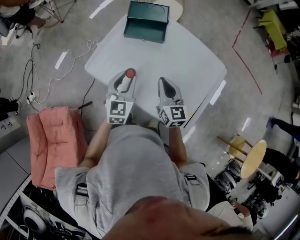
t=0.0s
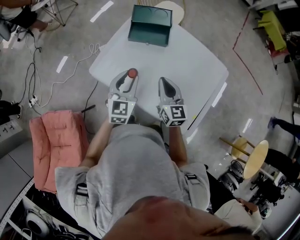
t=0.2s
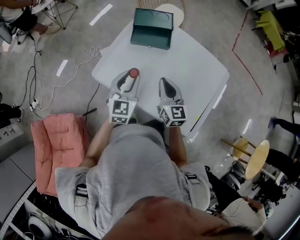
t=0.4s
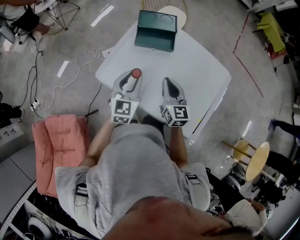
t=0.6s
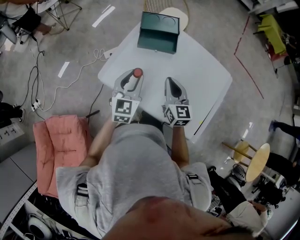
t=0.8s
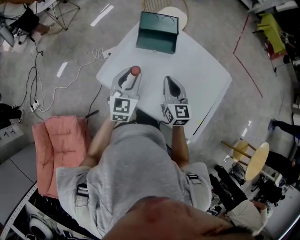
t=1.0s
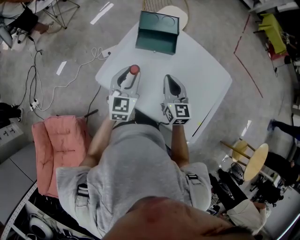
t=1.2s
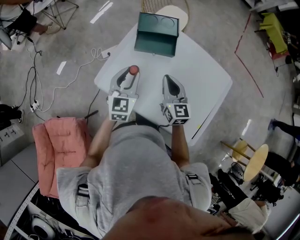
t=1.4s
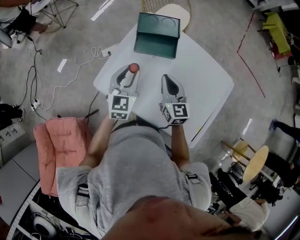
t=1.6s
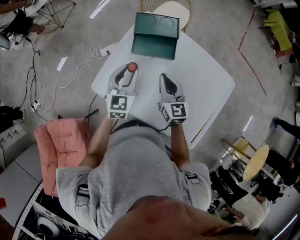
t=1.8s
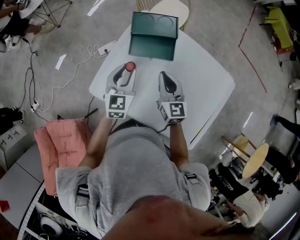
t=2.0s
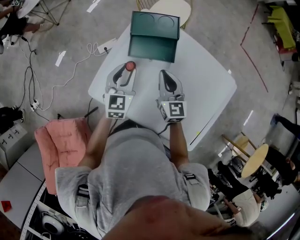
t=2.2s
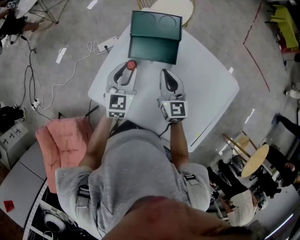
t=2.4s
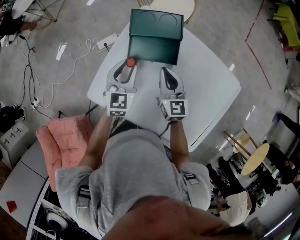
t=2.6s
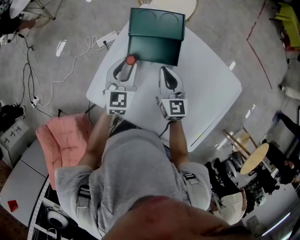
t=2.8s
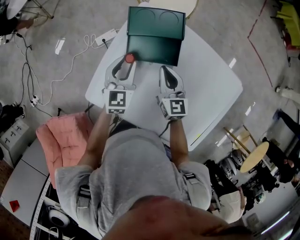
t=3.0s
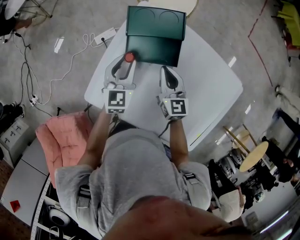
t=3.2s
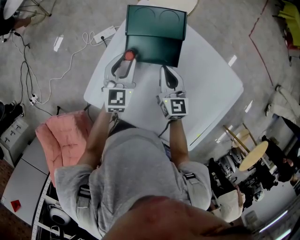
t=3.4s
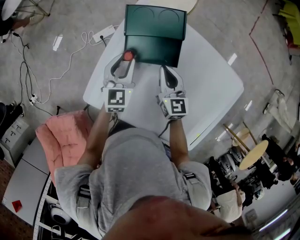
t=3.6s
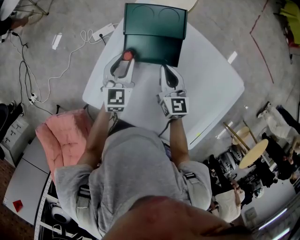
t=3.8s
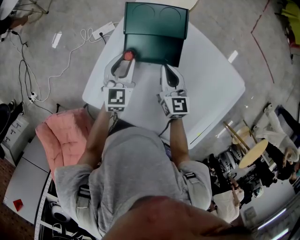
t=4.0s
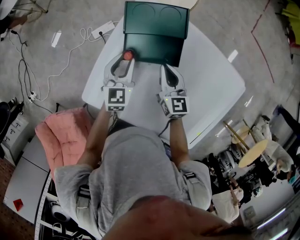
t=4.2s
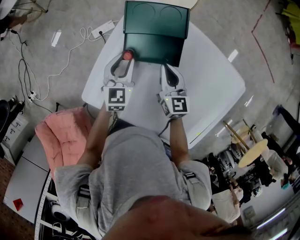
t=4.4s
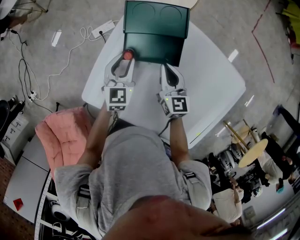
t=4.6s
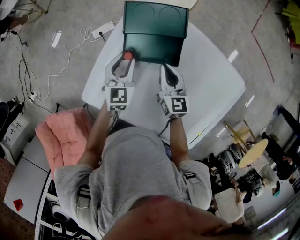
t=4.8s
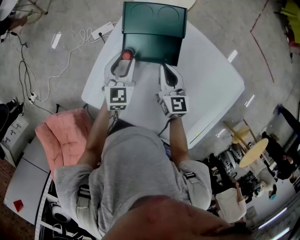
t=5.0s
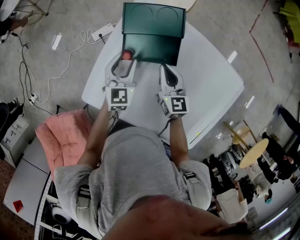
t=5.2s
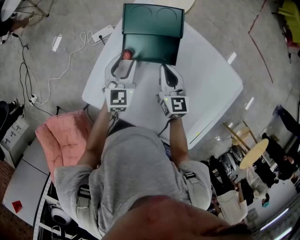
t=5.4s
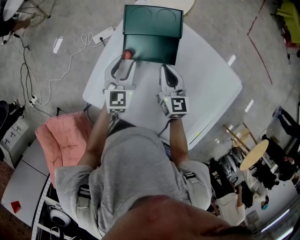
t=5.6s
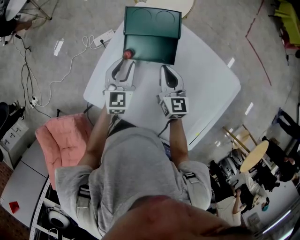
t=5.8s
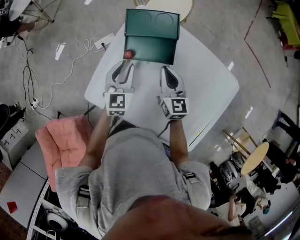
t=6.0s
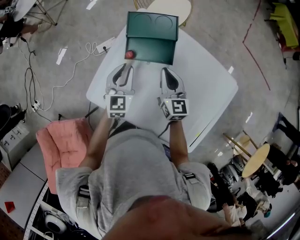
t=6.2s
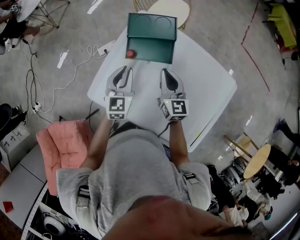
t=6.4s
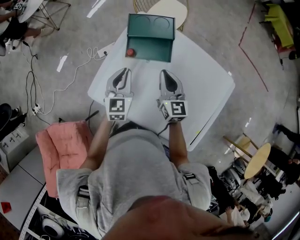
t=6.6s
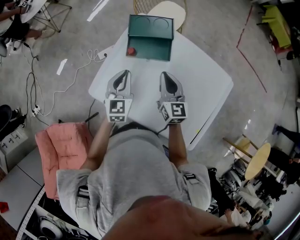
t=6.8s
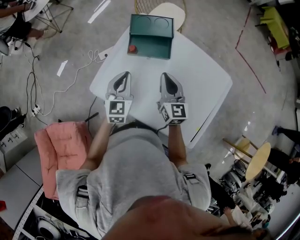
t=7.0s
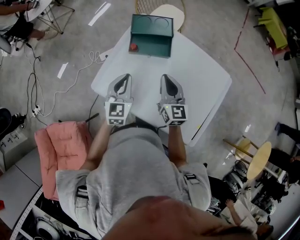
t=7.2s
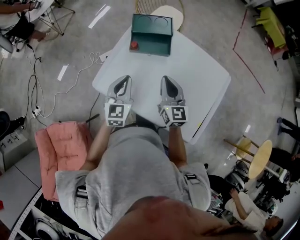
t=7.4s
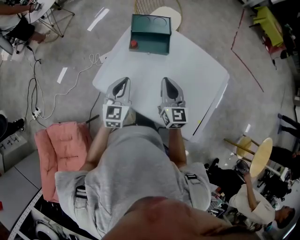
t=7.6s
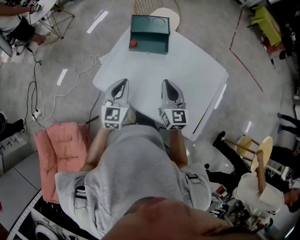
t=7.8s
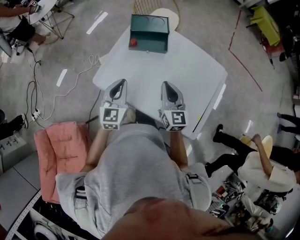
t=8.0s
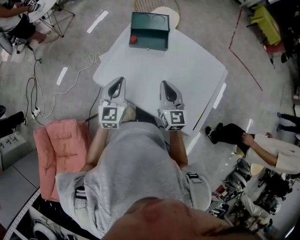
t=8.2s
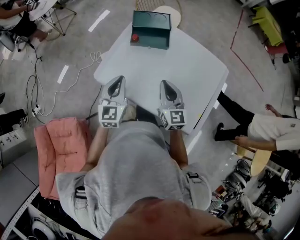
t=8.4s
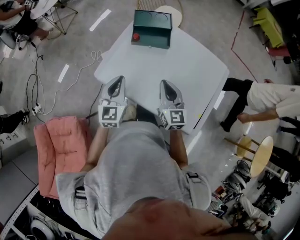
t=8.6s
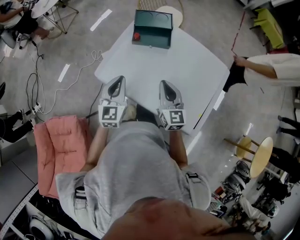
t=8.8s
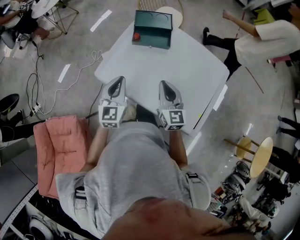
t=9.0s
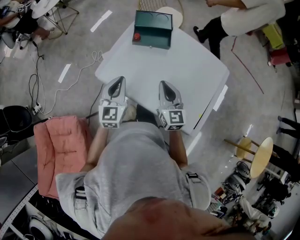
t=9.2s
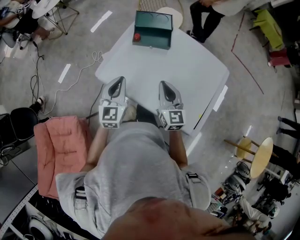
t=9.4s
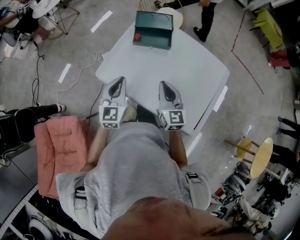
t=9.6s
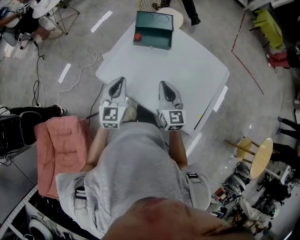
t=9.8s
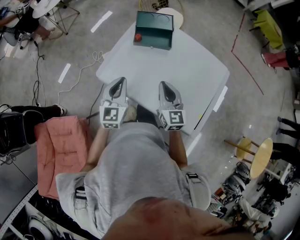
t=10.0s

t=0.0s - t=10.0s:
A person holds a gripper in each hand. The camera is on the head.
t=0.0s - t=1.4s: Both grippers move forward and to the left, about 10 cm.
t=1.4s - t=2.8s: The two grippers go roughly 20 cm forward and downward.
t=2.8s - t=4.2s: Both grippers travel together downward, roughly 5 cm.
t=4.2s - t=5.8s: The left gripper ends up roughly 5 cm from where it was.
t=5.8s - t=7.2s: Both grippers travel together backward and upward, some 20 cm. The left gripper closes its fingers.
t=7.2s - t=8.6s: The grippers both shift backward by some 10 cm.
t=8.6s - t=10.0s: The grippers stay close to where they were, moving slightly.

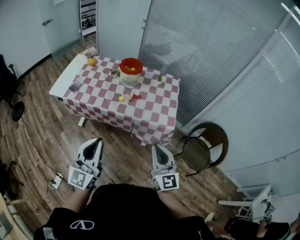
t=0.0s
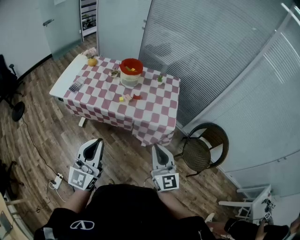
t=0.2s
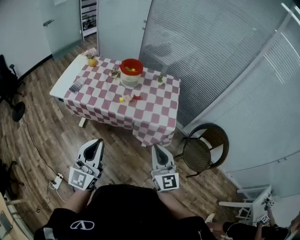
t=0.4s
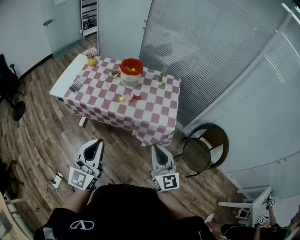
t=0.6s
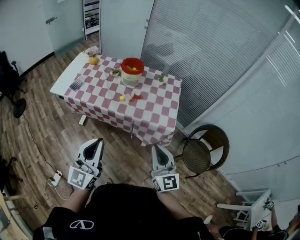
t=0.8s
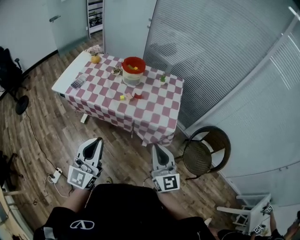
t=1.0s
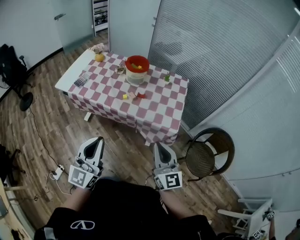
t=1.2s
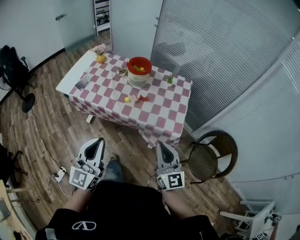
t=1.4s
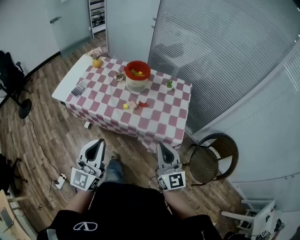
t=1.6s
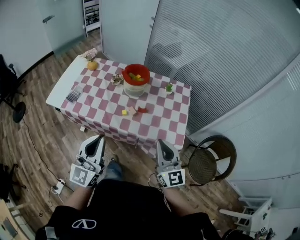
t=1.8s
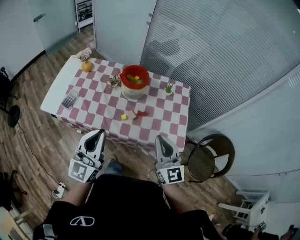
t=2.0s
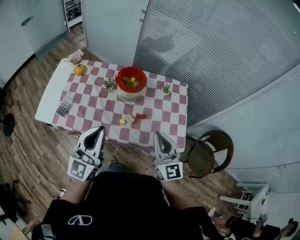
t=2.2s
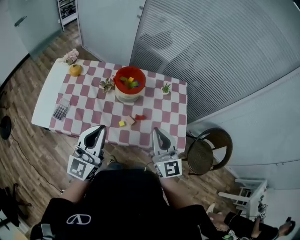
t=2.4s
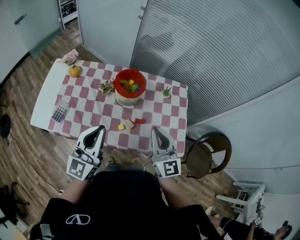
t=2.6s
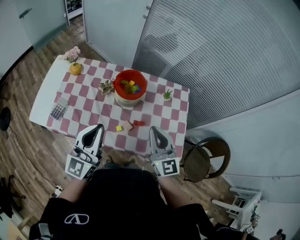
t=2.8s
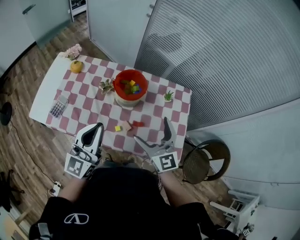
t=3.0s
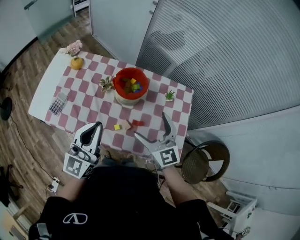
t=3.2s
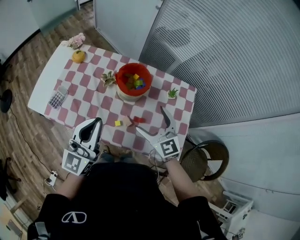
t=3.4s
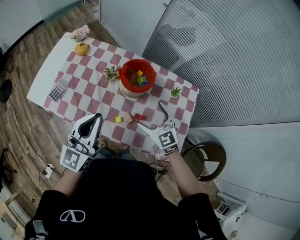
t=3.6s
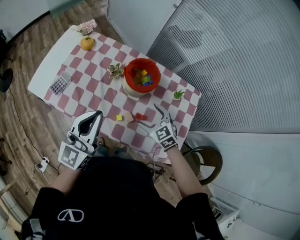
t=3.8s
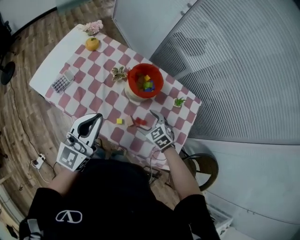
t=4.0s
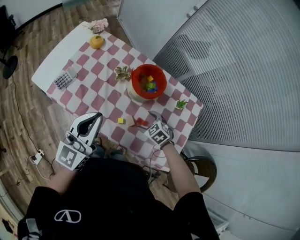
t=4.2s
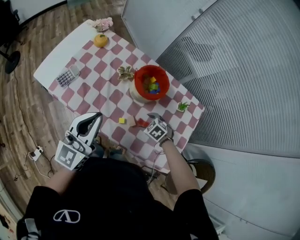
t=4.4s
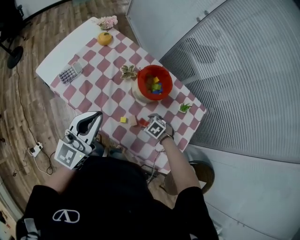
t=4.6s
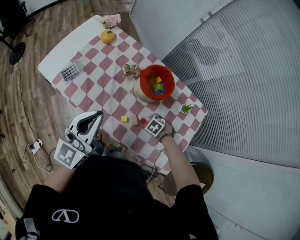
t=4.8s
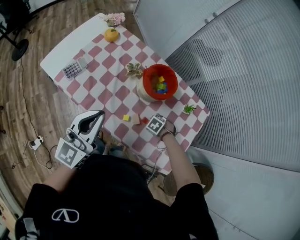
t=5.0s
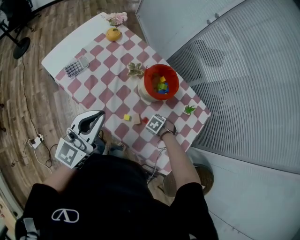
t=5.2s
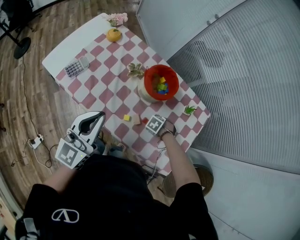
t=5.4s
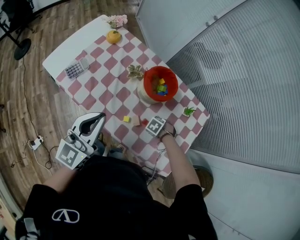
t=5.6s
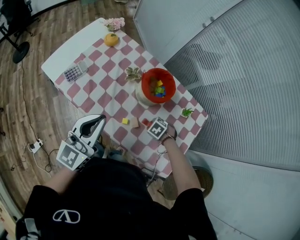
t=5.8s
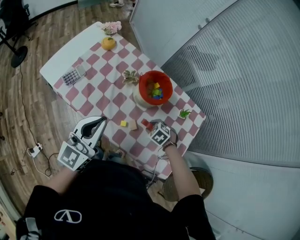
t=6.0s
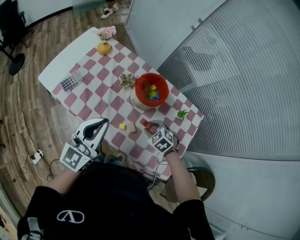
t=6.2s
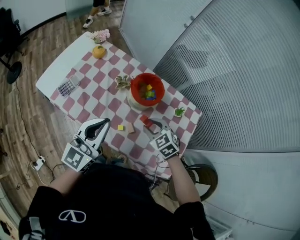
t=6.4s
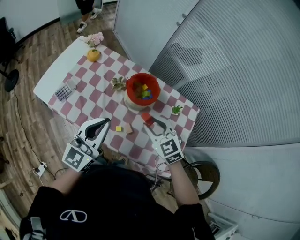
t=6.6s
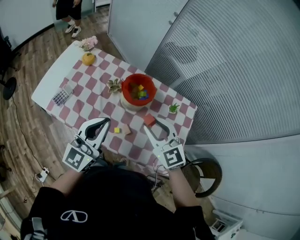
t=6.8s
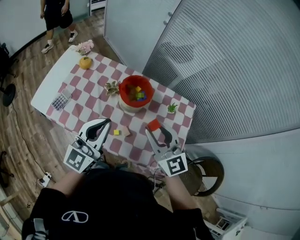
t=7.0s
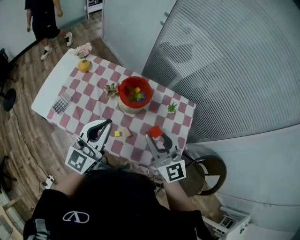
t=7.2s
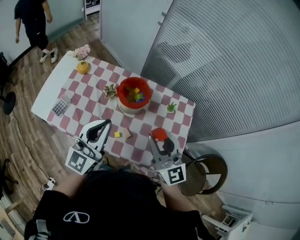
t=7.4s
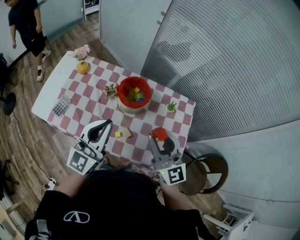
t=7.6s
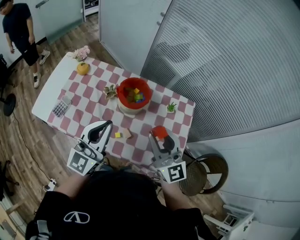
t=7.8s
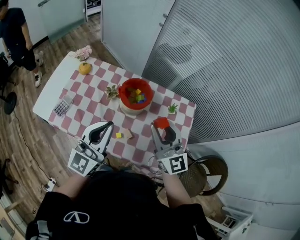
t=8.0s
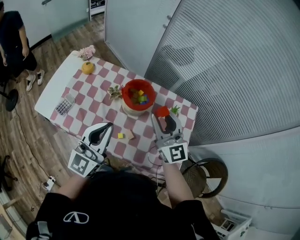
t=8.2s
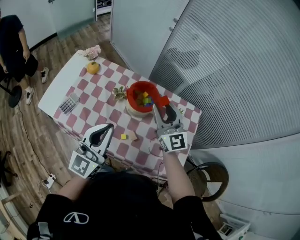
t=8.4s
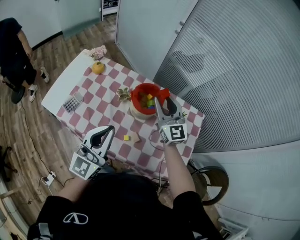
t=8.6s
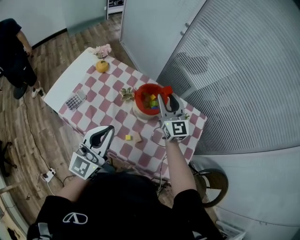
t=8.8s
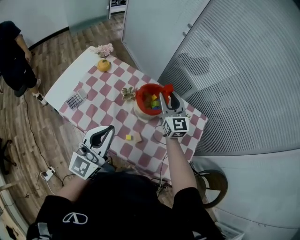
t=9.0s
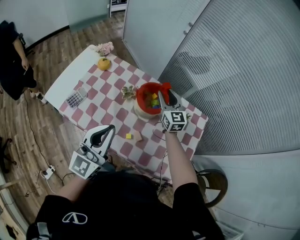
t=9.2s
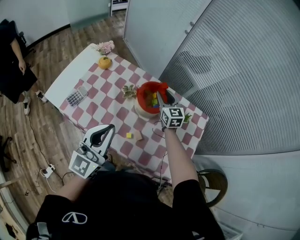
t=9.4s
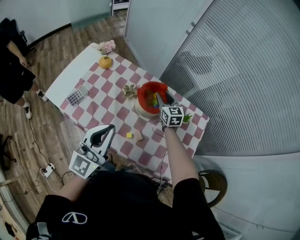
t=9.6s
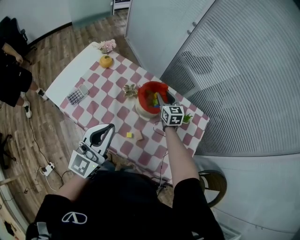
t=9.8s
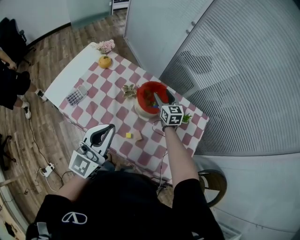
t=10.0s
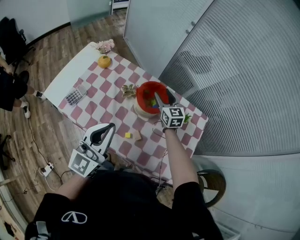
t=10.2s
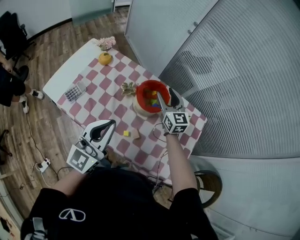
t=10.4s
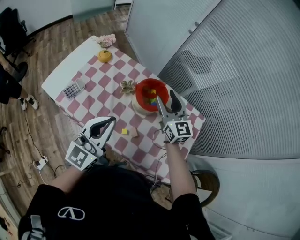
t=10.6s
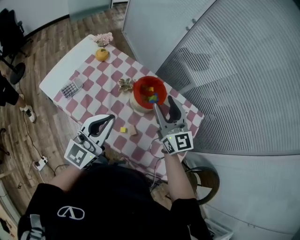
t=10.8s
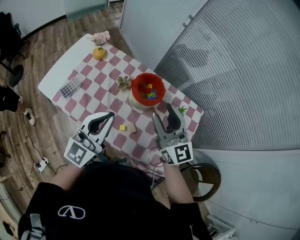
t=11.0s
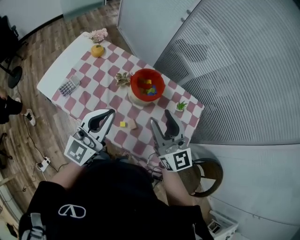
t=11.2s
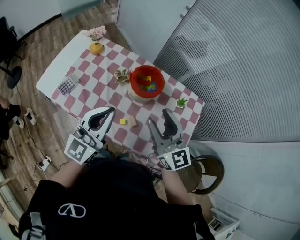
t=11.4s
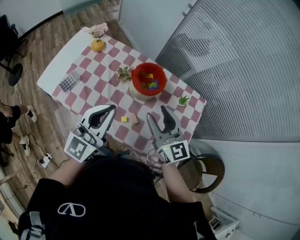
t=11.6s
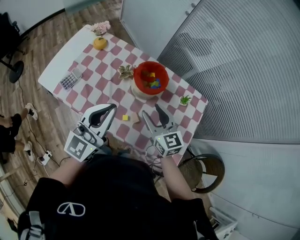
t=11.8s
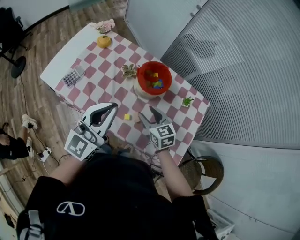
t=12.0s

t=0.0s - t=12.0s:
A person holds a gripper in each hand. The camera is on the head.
t=0.0s - t=1.6s: The grippers both shift forward by some 10 cm.
t=1.6s - t=3.0s: The grippers both shift forward by about 30 cm. The right gripper opens up.
t=3.0s - t=4.4s: The left gripper changes place by about 5 cm. The right gripper travels downward by some 30 cm, and tilts its fingers approximately 70 degrees downward.
t=4.4s - t=6.0s: The right gripper travels downward and back again, approximately 10 cm each way, and closes.
t=6.0s - t=7.6s: The right gripper goes roughly 35 cm upward, and angles its fingers upward, by some 80 degrees, while the left gripper shifts by about 10 cm.
t=7.6s - t=9.0s: The left gripper moves to the left, roughly 5 cm, while the right gripper heads forward, covering approximately 20 cm.
t=9.0s - t=10.4s: The right gripper travels downward and back again, approximately 15 cm each way.
t=10.4s - t=12.0s: The right gripper moves backward and downward, some 20 cm, and turns by approximately 30 degrees.

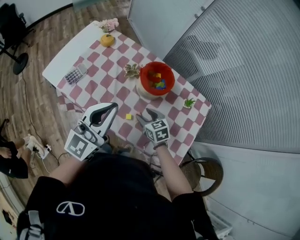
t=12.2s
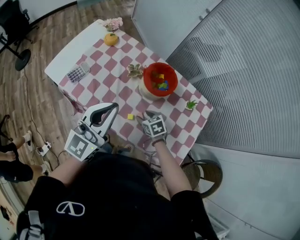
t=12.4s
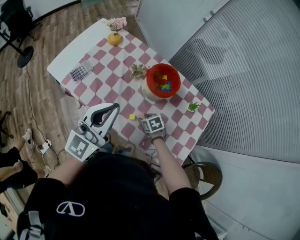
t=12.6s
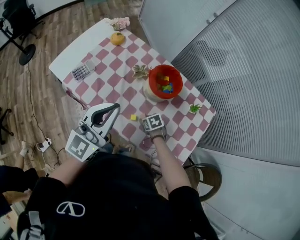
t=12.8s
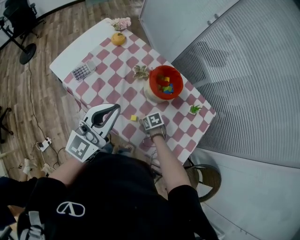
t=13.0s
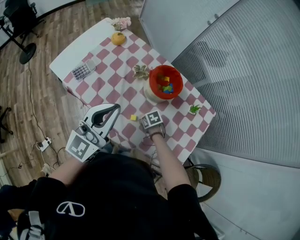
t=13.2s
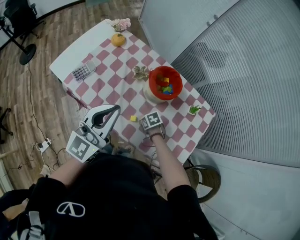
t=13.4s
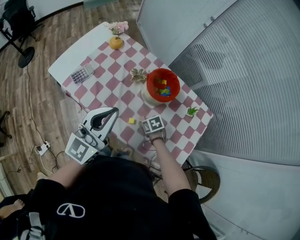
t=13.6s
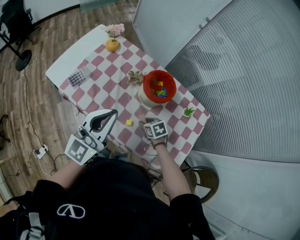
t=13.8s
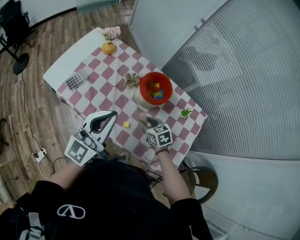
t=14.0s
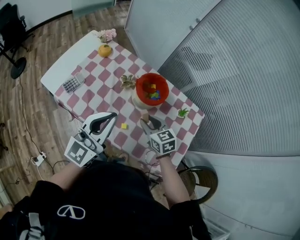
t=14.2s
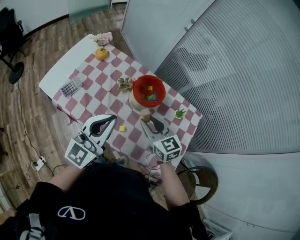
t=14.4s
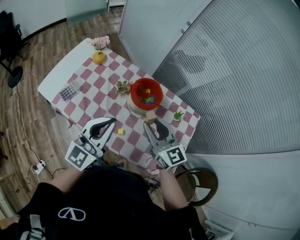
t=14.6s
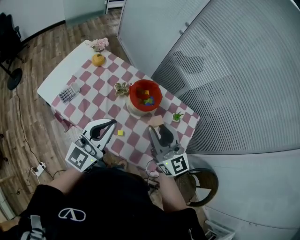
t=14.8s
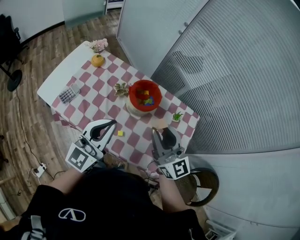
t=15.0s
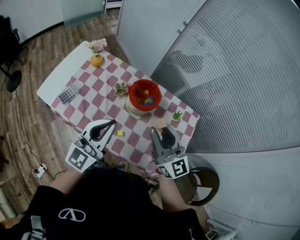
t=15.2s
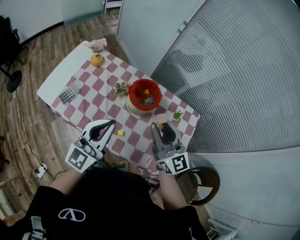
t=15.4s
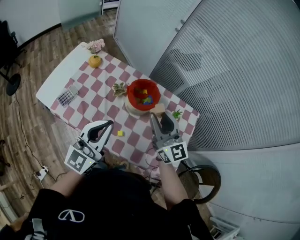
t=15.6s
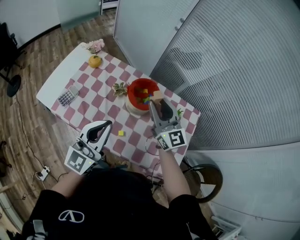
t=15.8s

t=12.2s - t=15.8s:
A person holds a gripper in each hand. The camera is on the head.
t=12.2s - t=14.0s: The right gripper moves approximately 15 cm downward and comes back.
t=14.0s - t=15.8s: The right gripper is displaced upward by roughly 25 cm, and angles its fingers upward, by about 50 degrees.
